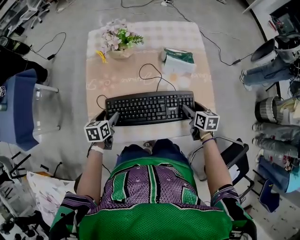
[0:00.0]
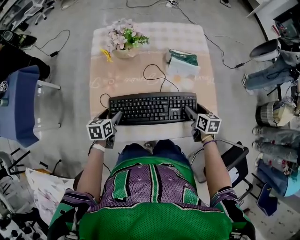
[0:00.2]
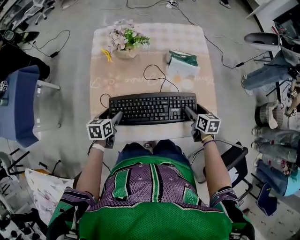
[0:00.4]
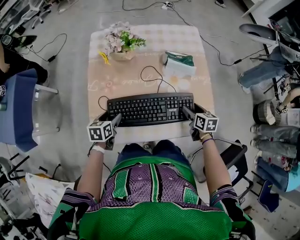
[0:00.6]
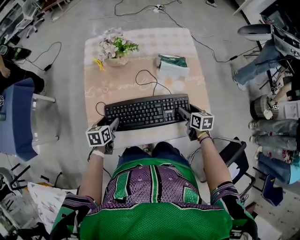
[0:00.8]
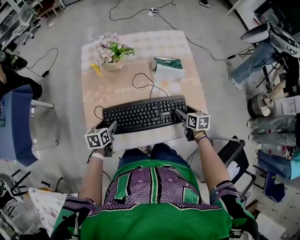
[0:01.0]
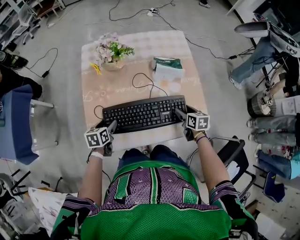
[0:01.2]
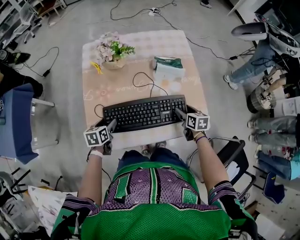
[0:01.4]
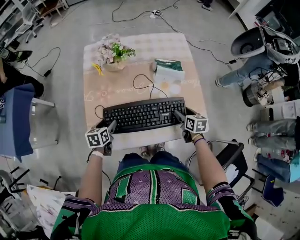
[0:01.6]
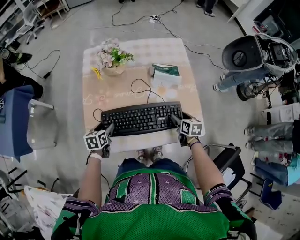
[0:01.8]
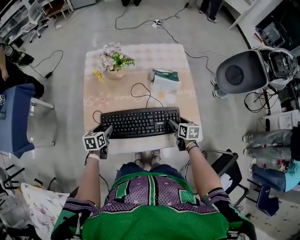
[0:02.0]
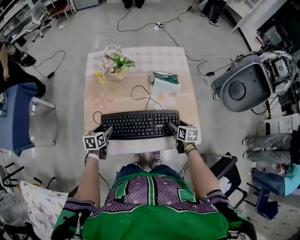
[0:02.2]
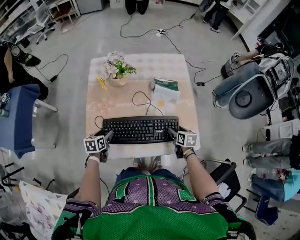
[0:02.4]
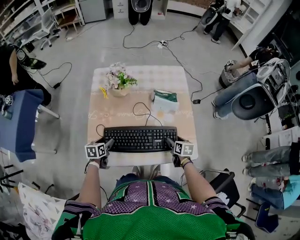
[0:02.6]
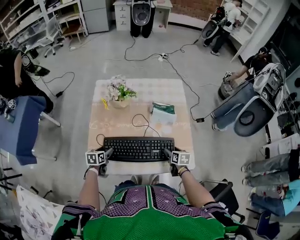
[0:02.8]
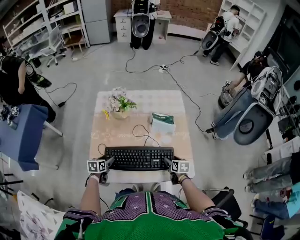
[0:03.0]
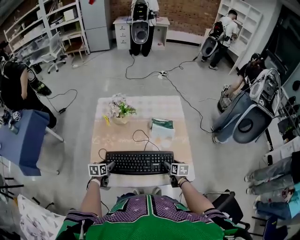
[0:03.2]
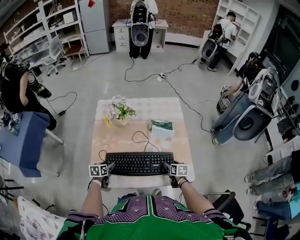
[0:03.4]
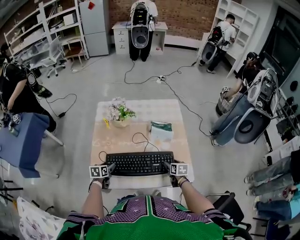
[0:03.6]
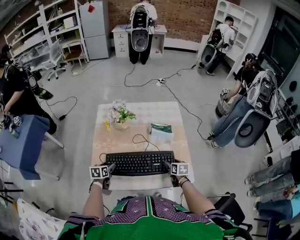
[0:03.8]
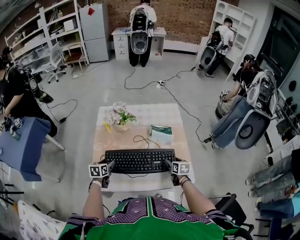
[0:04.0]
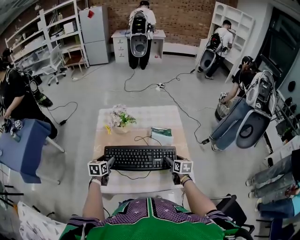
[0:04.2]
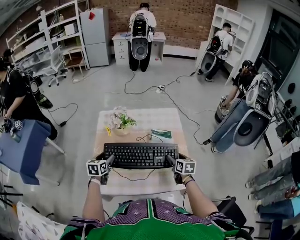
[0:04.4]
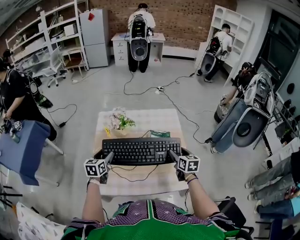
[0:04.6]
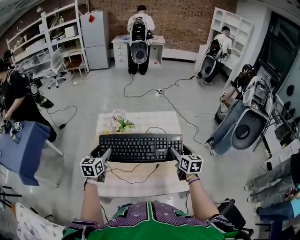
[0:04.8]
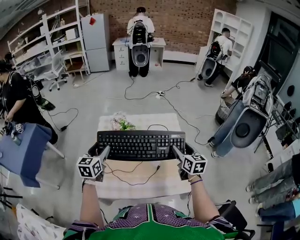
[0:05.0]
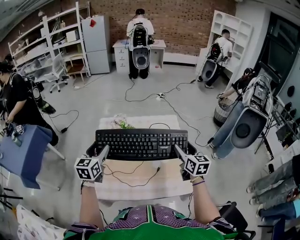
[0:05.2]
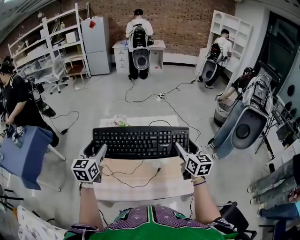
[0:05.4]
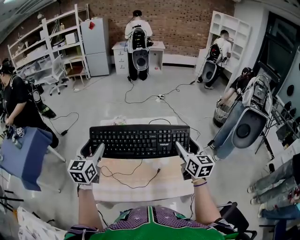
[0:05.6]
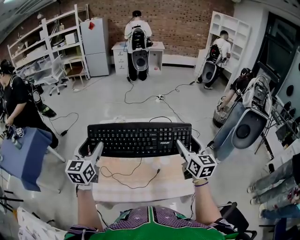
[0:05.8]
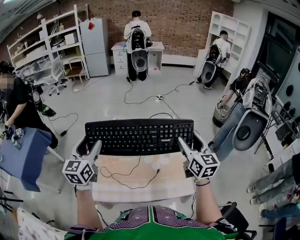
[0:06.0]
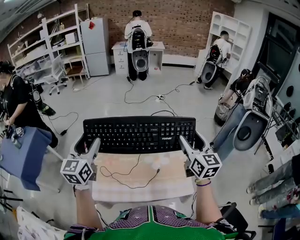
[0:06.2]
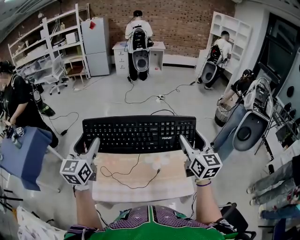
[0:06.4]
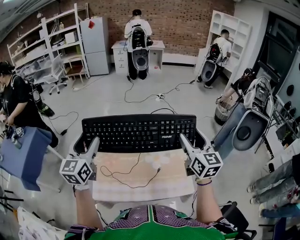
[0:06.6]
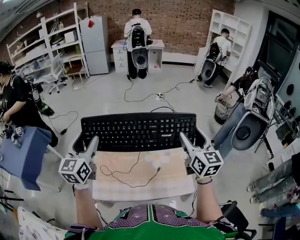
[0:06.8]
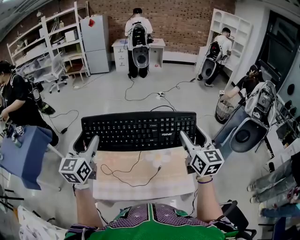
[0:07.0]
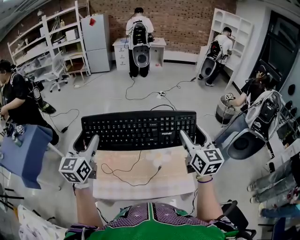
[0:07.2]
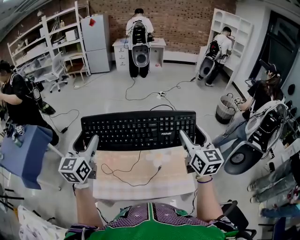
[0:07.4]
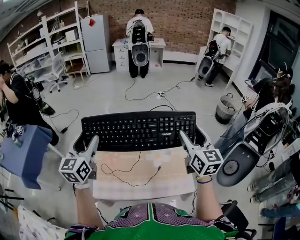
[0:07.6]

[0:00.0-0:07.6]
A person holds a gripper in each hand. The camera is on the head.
0:00.0 to 0:01.6: Both grippers stay put.
0:01.6 to 0:03.0: The grippers stay close to where they were, moving slightly.
0:03.0 to 0:04.6: Both grippers move upward, approximately 20 cm. The left gripper rotates some 20 degrees, while the right gripper rotates some 20 degrees.
0:04.6 to 0:06.0: Both grippers travel together upward, roughly 25 cm. The right gripper swivels roughly 30 degrees. The left gripper turns by some 30 degrees.
0:06.0 to 0:07.6: The grippers stay close to where they were, moving slightly.

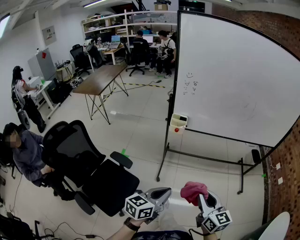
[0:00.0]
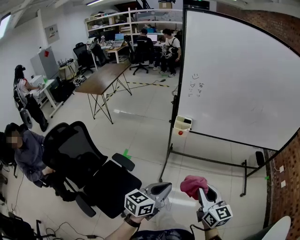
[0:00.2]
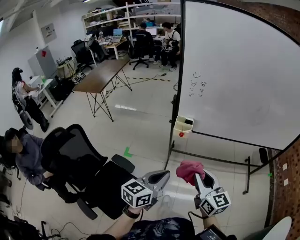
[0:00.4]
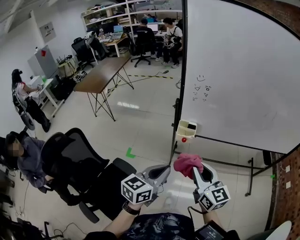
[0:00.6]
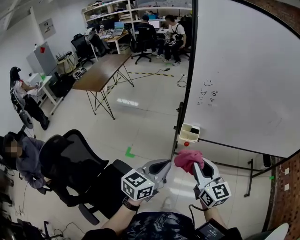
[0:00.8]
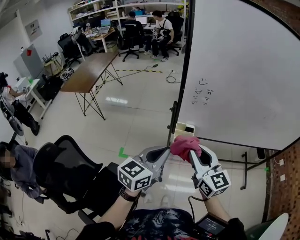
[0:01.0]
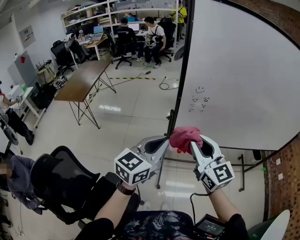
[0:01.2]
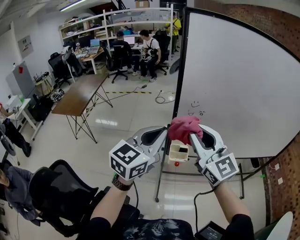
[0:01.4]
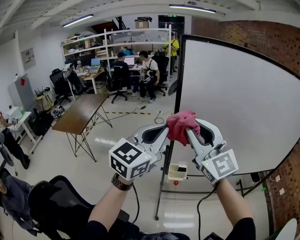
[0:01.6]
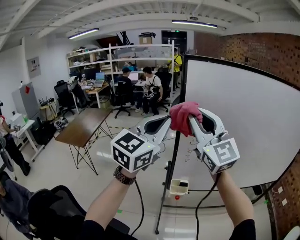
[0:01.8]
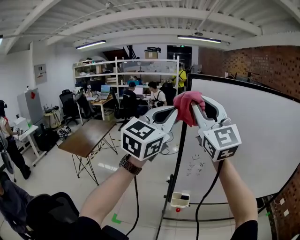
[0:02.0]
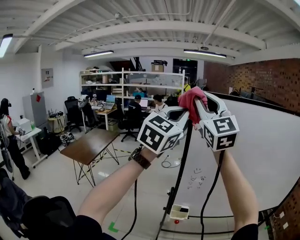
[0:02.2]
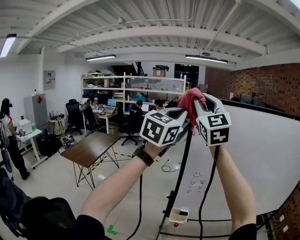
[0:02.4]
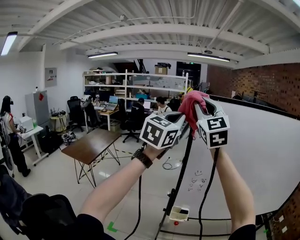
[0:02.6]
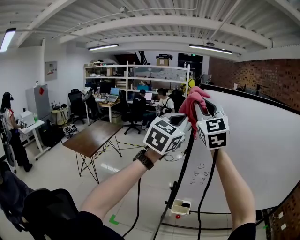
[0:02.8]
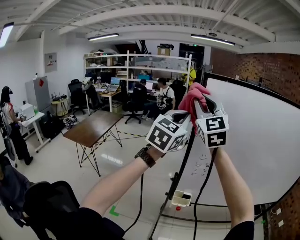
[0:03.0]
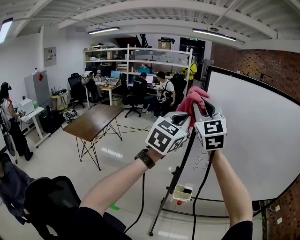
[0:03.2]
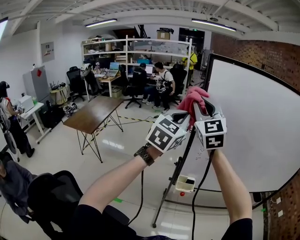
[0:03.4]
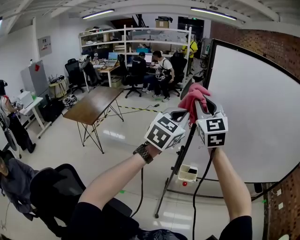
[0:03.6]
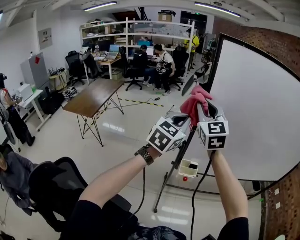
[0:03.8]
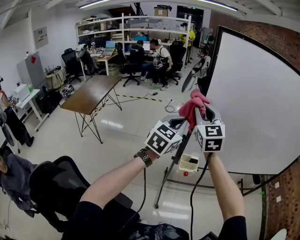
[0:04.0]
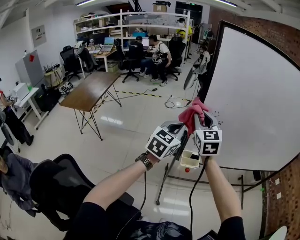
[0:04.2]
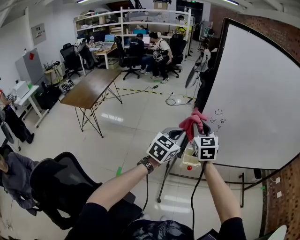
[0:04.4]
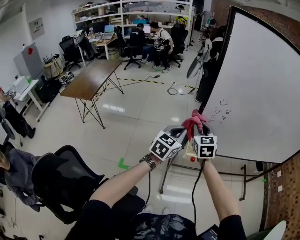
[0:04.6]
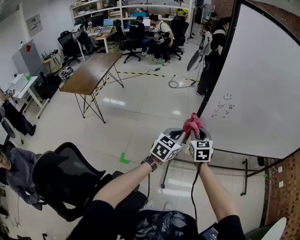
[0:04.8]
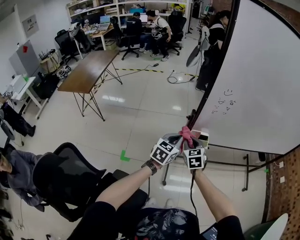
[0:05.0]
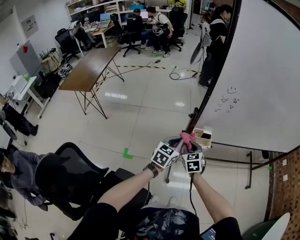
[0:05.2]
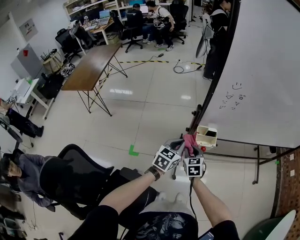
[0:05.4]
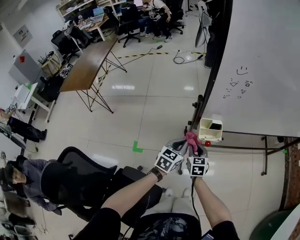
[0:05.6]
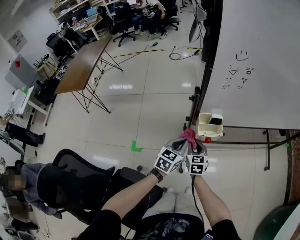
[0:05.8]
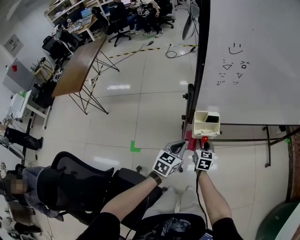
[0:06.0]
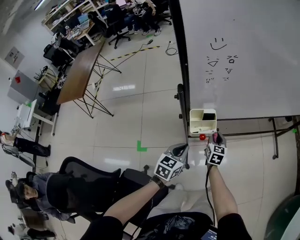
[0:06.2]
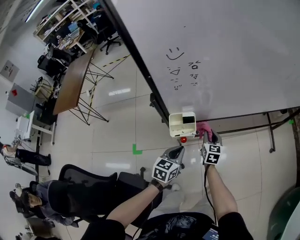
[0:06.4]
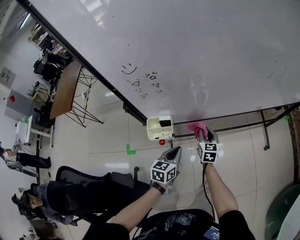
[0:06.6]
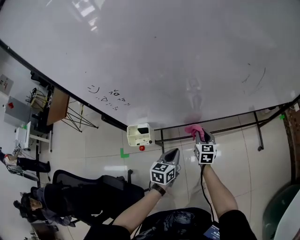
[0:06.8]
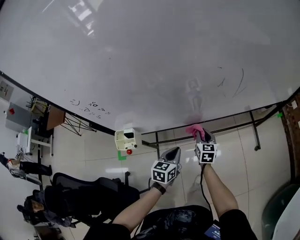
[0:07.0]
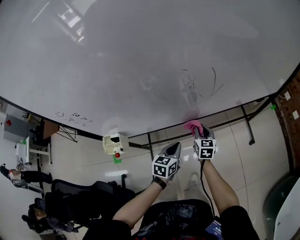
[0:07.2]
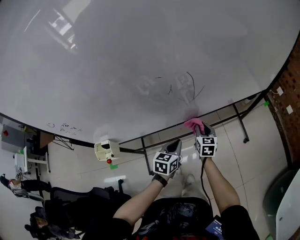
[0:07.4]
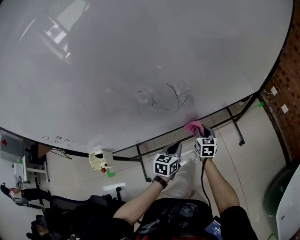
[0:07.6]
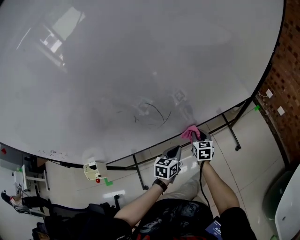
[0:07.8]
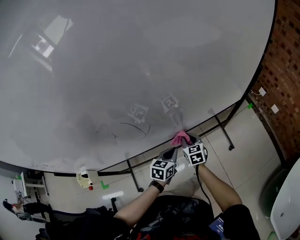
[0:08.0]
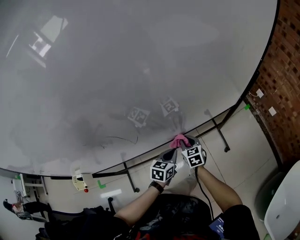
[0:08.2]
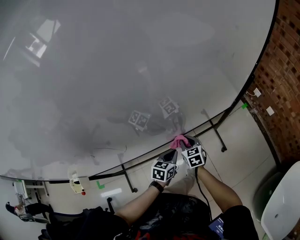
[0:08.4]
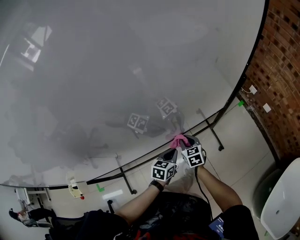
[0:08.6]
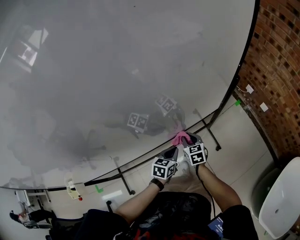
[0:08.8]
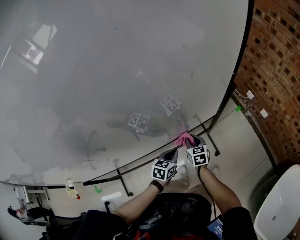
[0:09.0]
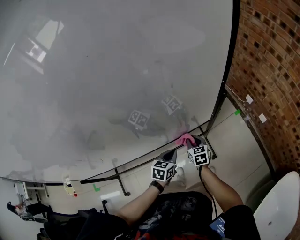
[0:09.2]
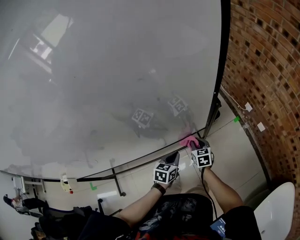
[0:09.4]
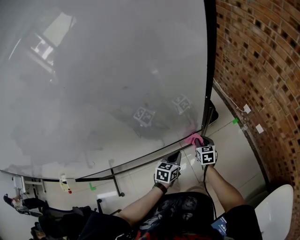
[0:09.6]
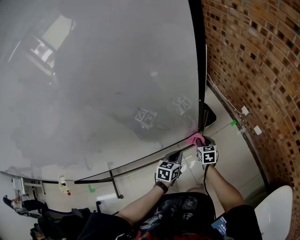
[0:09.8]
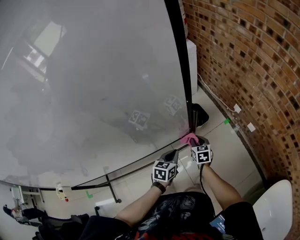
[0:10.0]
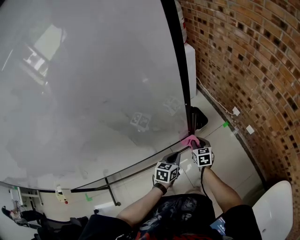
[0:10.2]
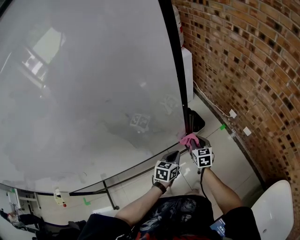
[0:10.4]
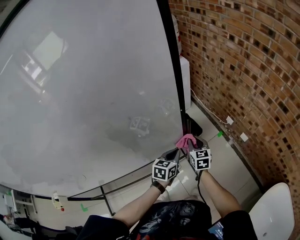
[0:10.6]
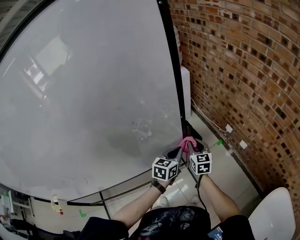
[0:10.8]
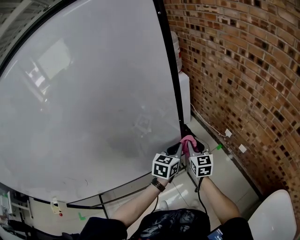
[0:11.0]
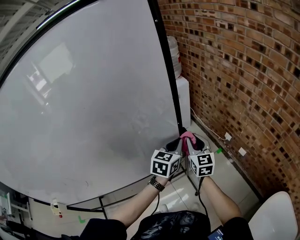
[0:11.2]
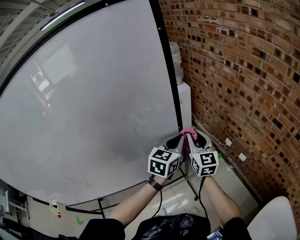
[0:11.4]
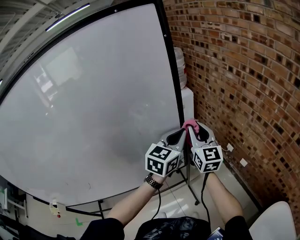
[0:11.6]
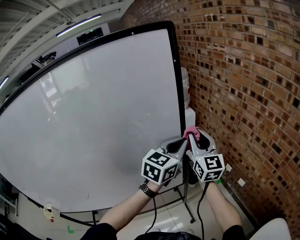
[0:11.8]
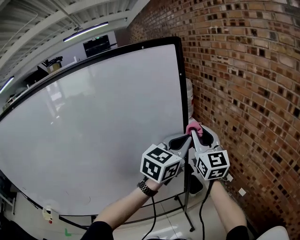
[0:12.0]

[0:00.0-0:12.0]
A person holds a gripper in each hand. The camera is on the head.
0:00.0 to 0:01.6: The two grippers travel together, forward and to the left, some 50 cm. Both grippers travel together upward, about 30 cm. The right gripper changes its angle by about 50 degrees. The left gripper turns by some 40 degrees.
0:01.6 to 0:03.0: The two grippers go approximately 15 cm upward and forward.
0:03.0 to 0:04.4: Both grippers travel together downward, approximately 35 cm. The right gripper changes its angle by about 30 degrees. The left gripper swivels roughly 20 degrees.
0:04.4 to 0:06.0: The grippers both shift downward by about 40 cm. The right gripper turns by approximately 40 degrees, while the left gripper turns by some 20 degrees.
0:06.0 to 0:07.6: Both grippers are carried to the right and forward, about 60 cm.
0:07.6 to 0:09.0: Both grippers move to the right and forward, roughly 30 cm.
0:09.0 to 0:10.4: Both grippers travel together to the right and forward, approximately 20 cm.
0:10.4 to 0:12.0: The two grippers go approximately 50 cm upward. The left gripper changes its angle by some 40 degrees. Meanwhile the right gripper tips its fingers upward by about 50 degrees.

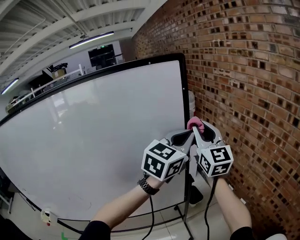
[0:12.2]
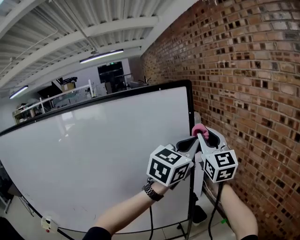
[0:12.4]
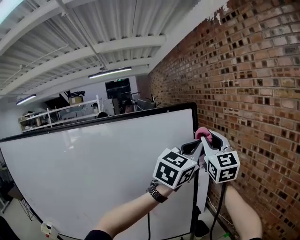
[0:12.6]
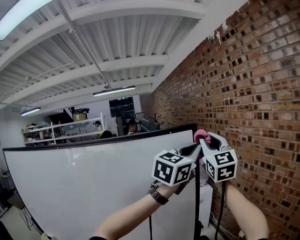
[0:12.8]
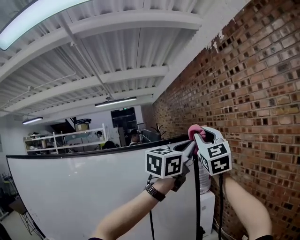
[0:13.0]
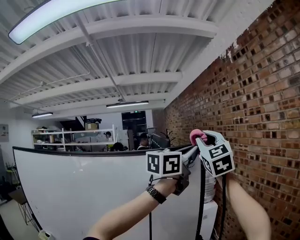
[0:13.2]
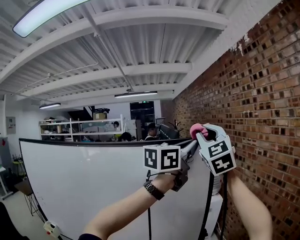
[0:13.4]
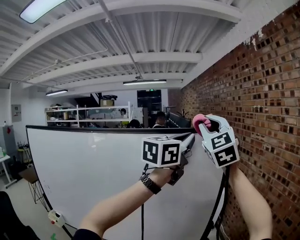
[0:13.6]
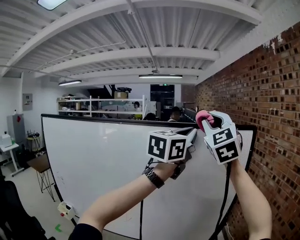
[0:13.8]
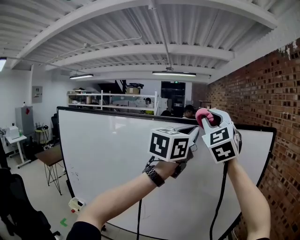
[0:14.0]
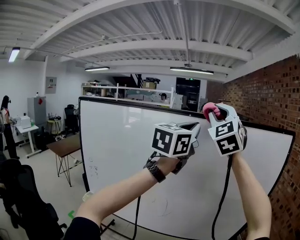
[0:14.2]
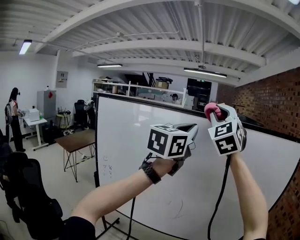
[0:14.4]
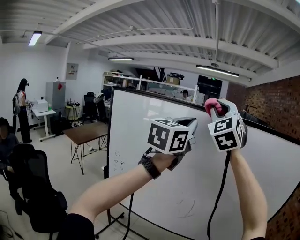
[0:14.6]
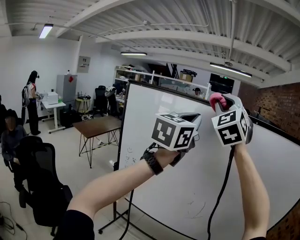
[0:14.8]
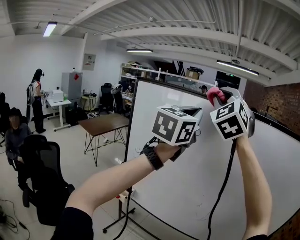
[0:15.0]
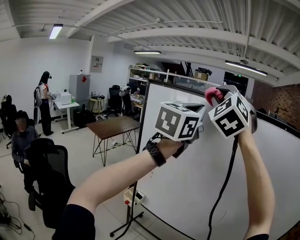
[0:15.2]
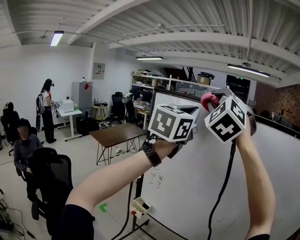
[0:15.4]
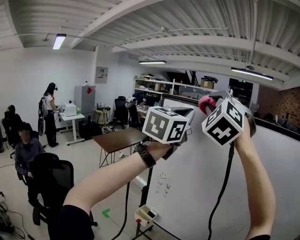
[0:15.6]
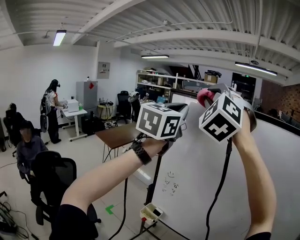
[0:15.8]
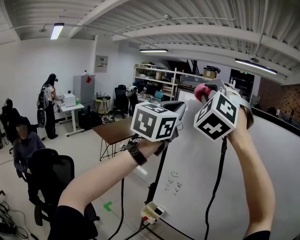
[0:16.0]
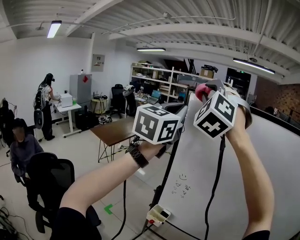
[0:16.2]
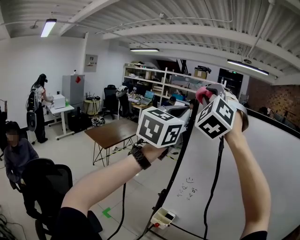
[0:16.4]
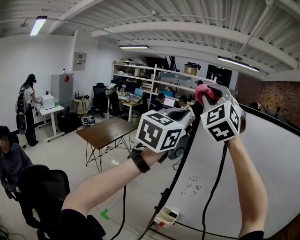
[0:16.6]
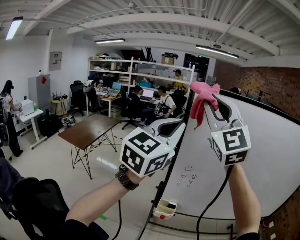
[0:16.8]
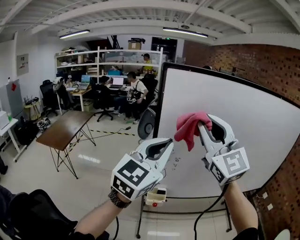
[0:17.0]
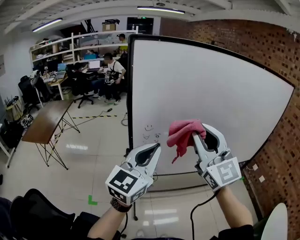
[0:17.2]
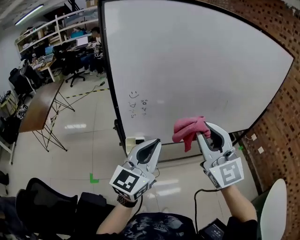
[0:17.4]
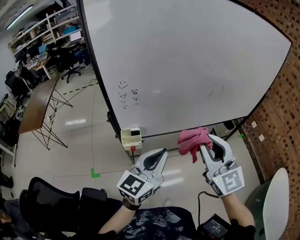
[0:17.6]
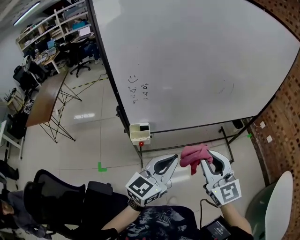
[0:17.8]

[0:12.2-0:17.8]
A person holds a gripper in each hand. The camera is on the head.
0:12.2 to 0:13.6: Both grippers travel together upward and to the left, roughly 30 cm. The right gripper turns by roughly 30 degrees.
0:13.6 to 0:15.0: Both grippers are carried some 60 cm. The left gripper rotates about 40 degrees; the right gripper swivels approximately 20 degrees.
0:15.0 to 0:16.4: The two grippers travel together, to the left, about 50 cm.
0:16.4 to 0:17.8: The grippers both shift downward by about 40 cm. The right gripper rolls clockwise, seen from behind, by roughly 70 degrees, while the left gripper turns by roughly 50 degrees.
